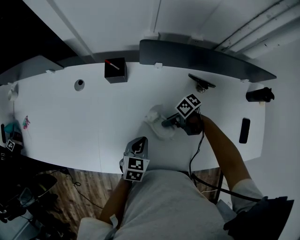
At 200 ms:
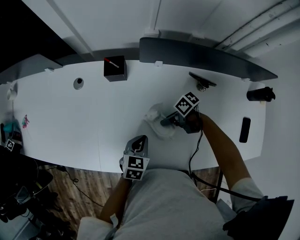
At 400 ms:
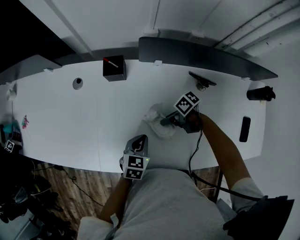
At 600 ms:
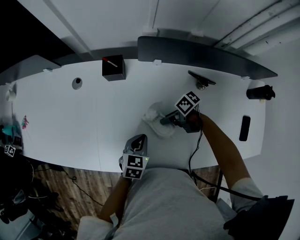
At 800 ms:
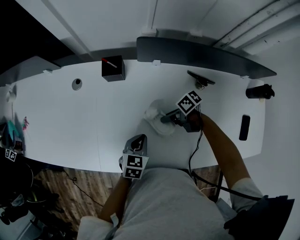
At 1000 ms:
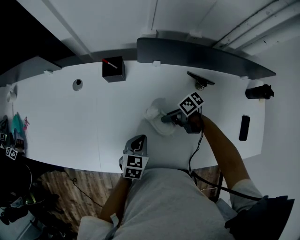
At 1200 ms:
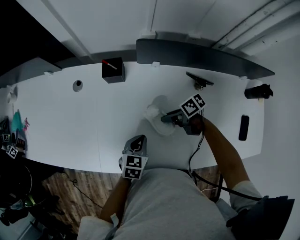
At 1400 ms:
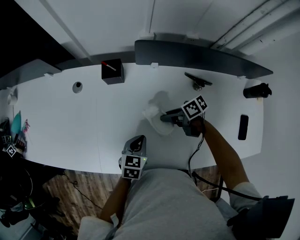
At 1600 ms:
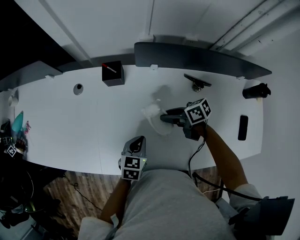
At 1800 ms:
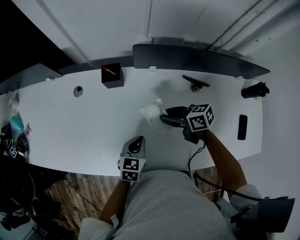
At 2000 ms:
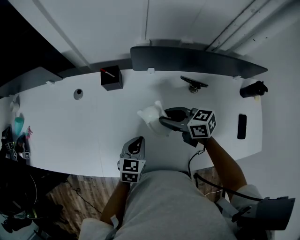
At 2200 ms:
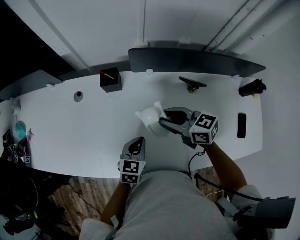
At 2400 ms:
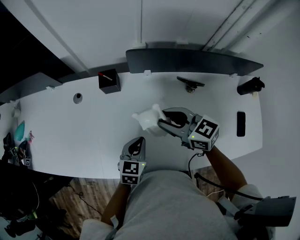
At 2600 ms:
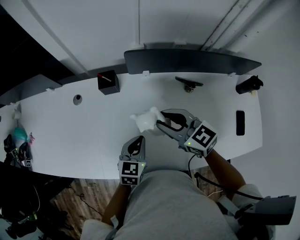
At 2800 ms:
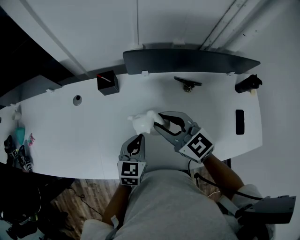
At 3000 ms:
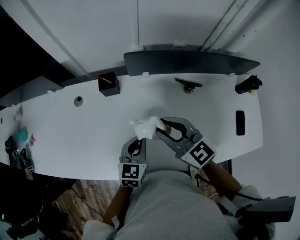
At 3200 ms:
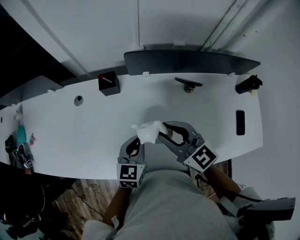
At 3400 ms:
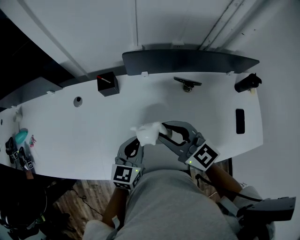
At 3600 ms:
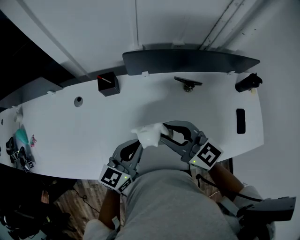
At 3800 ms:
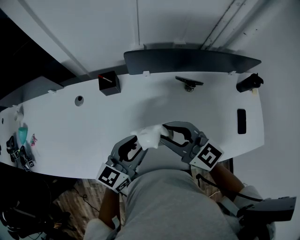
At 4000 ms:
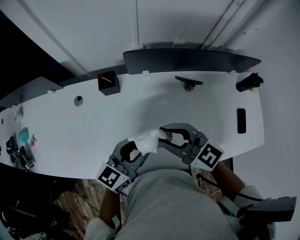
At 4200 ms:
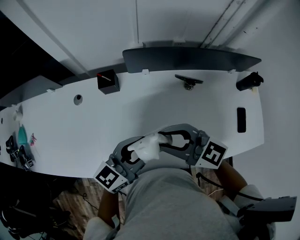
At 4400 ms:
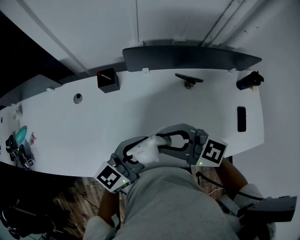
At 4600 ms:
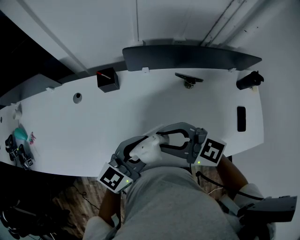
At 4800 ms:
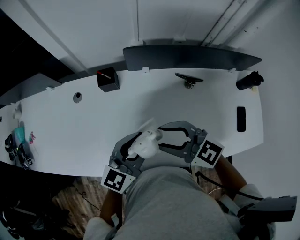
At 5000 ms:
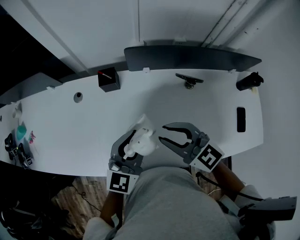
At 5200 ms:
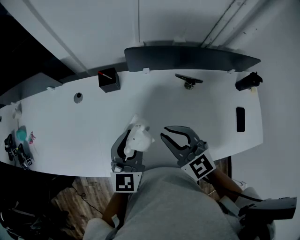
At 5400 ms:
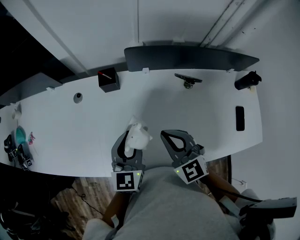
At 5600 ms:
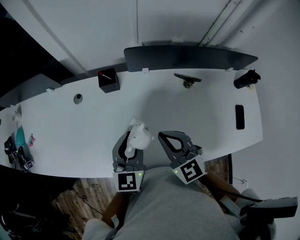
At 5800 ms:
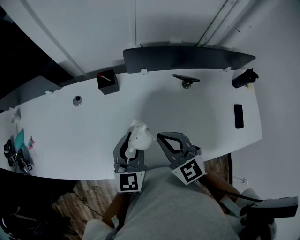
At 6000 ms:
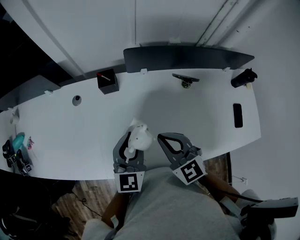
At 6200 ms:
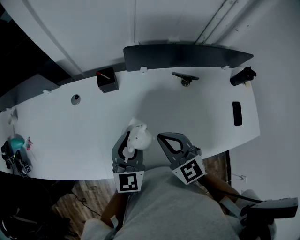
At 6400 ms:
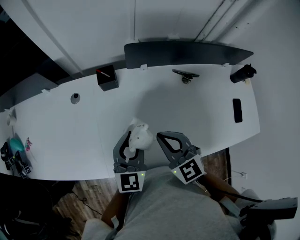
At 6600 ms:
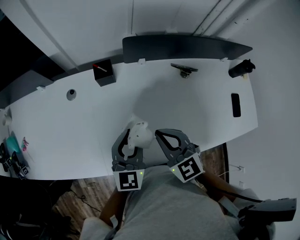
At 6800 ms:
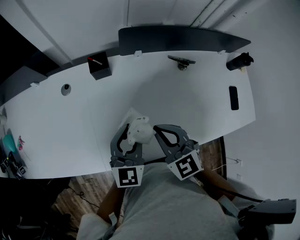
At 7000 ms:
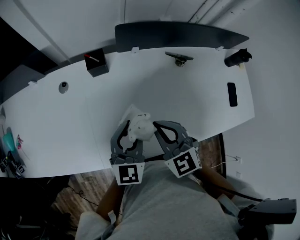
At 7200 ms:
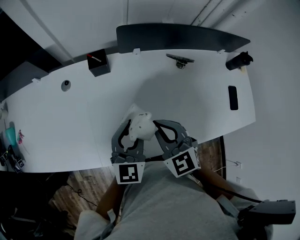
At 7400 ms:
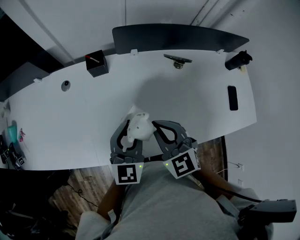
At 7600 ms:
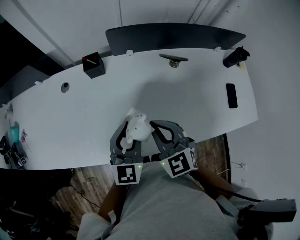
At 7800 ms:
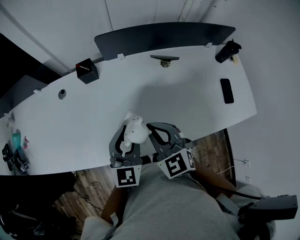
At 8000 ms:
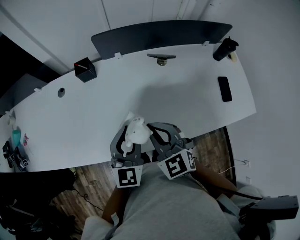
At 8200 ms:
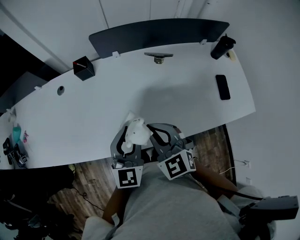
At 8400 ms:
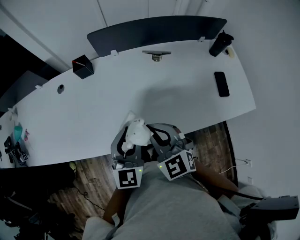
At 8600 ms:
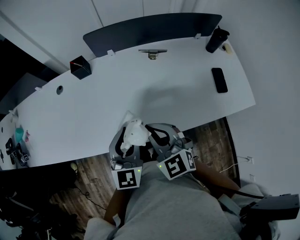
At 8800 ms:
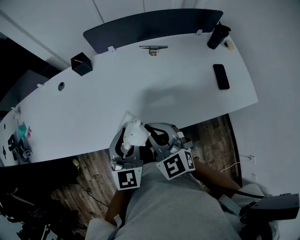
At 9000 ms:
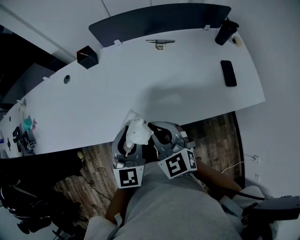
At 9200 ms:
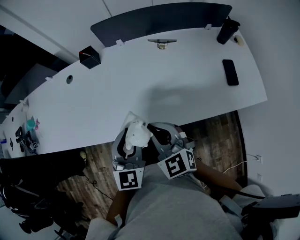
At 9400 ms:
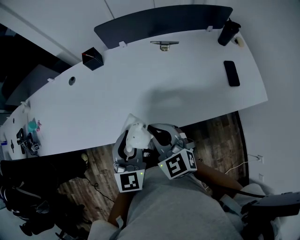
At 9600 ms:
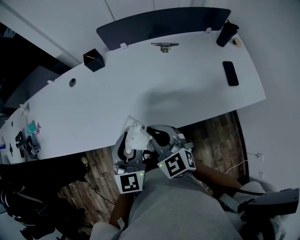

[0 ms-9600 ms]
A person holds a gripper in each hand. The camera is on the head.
0 ms to 1600 ms: The right gripper heads upward, covering about 10 cm, and changes its angle by roughly 30 degrees.
1600 ms to 3200 ms: The right gripper goes some 20 cm upward, and rotates roughly 60 degrees. Meanwhile the left gripper moves upward, about 10 cm.
3200 ms to 4800 ms: The left gripper heads upward, covering about 10 cm, turns by roughly 20 degrees, and opens up, while the right gripper changes its angle by about 20 degrees.
4800 ms to 6400 ms: The left gripper goes some 5 cm to the left, and turns by some 20 degrees; the right gripper swivels approximately 30 degrees, and closes.
6400 ms to 8000 ms: The left gripper is displaced to the right and backward by roughly 15 cm. The right gripper travels backward and to the right by some 10 cm.
8000 ms to 9600 ms: Both grippers travel together backward, some 10 cm.

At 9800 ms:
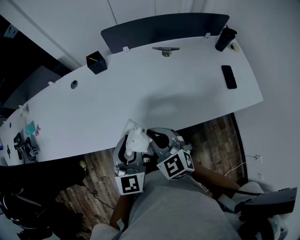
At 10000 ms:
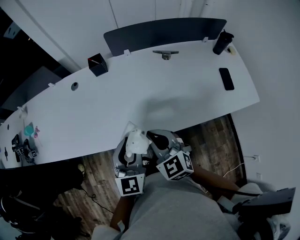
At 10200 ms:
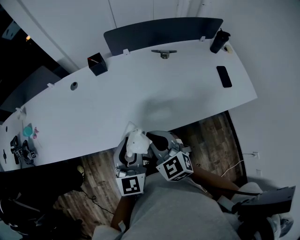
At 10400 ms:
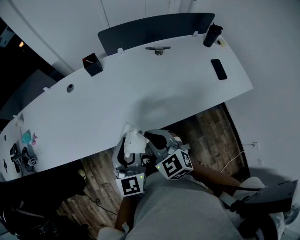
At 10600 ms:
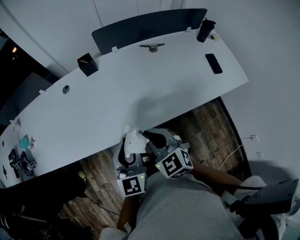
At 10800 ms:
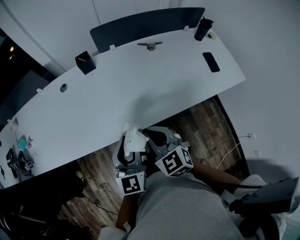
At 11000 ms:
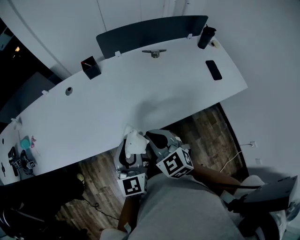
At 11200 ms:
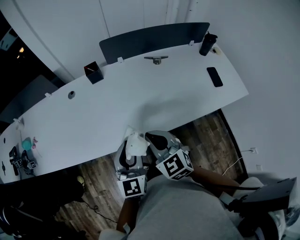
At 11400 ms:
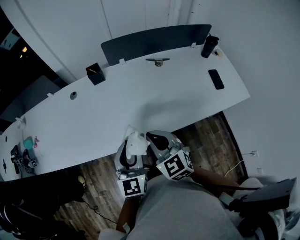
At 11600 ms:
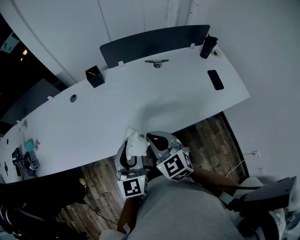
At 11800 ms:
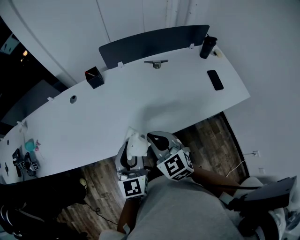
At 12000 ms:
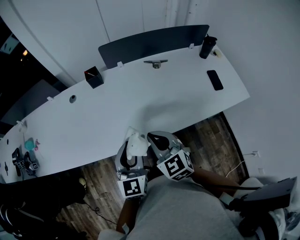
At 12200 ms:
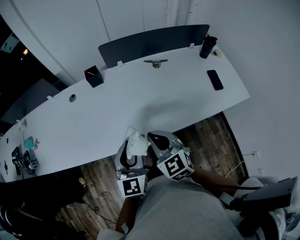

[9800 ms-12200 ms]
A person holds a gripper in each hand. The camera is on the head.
9800 ms to 11000 ms: The left gripper goes roughly 5 cm to the left. Meanwhile the right gripper changes place by about 5 cm.
11000 ms to 12200 ms: There are only small adjustments of the grippers.

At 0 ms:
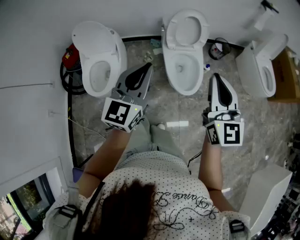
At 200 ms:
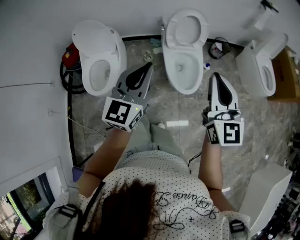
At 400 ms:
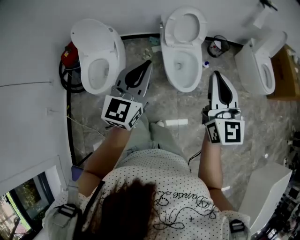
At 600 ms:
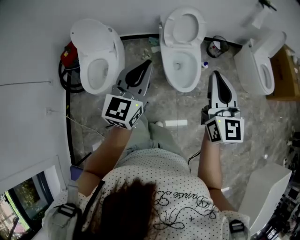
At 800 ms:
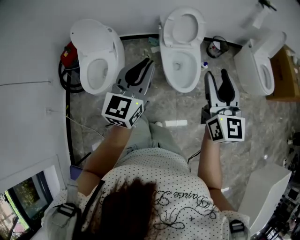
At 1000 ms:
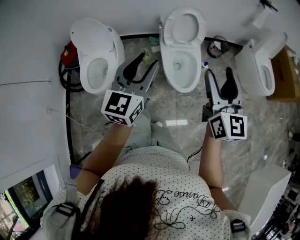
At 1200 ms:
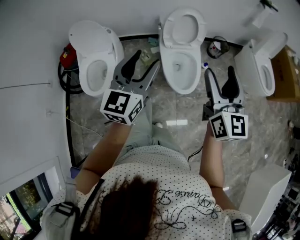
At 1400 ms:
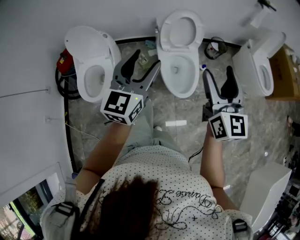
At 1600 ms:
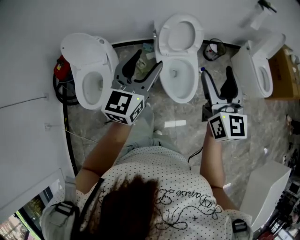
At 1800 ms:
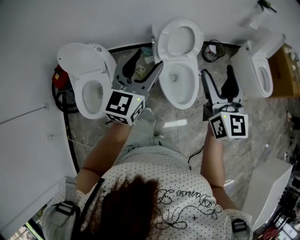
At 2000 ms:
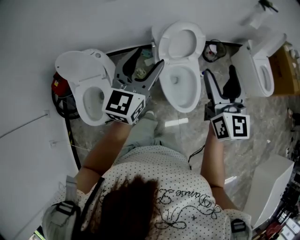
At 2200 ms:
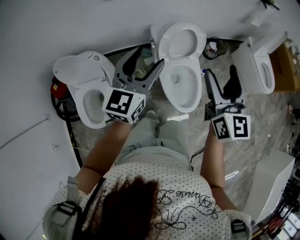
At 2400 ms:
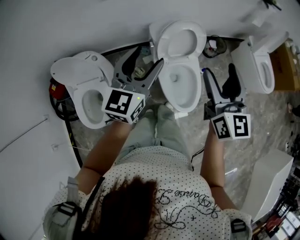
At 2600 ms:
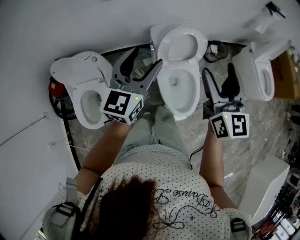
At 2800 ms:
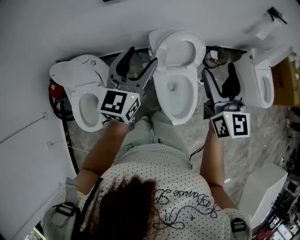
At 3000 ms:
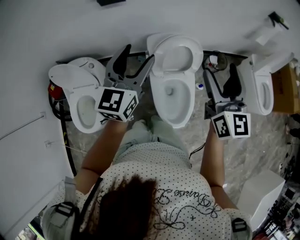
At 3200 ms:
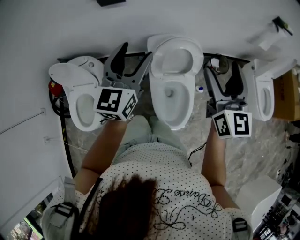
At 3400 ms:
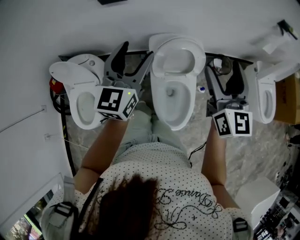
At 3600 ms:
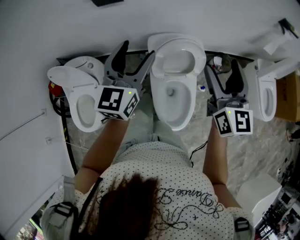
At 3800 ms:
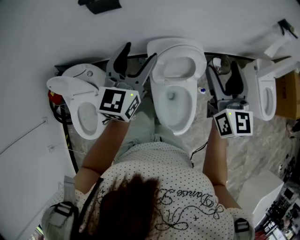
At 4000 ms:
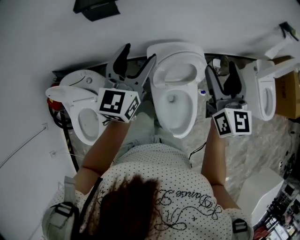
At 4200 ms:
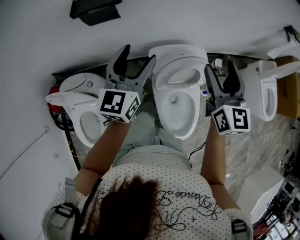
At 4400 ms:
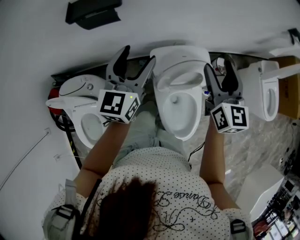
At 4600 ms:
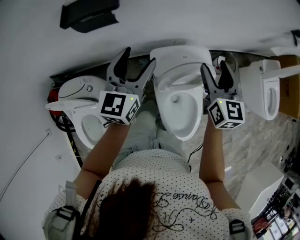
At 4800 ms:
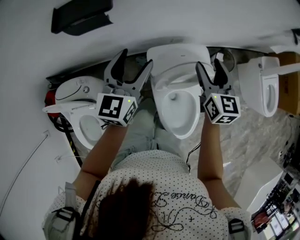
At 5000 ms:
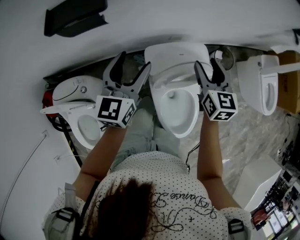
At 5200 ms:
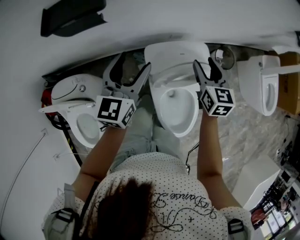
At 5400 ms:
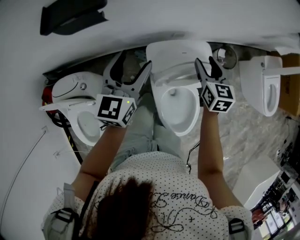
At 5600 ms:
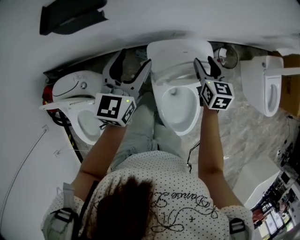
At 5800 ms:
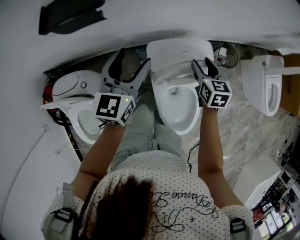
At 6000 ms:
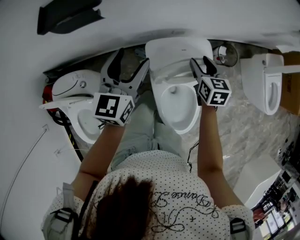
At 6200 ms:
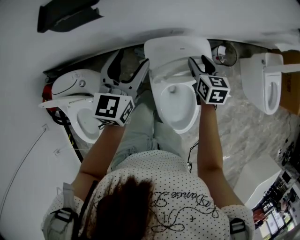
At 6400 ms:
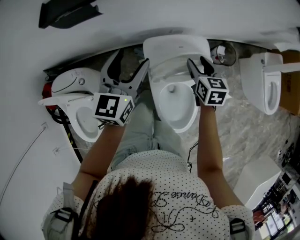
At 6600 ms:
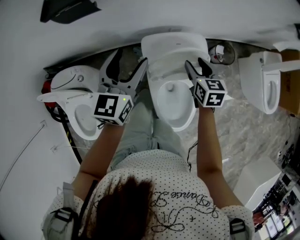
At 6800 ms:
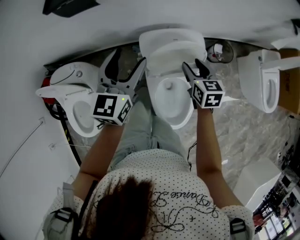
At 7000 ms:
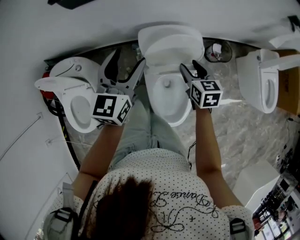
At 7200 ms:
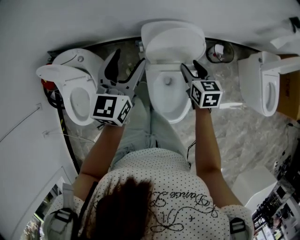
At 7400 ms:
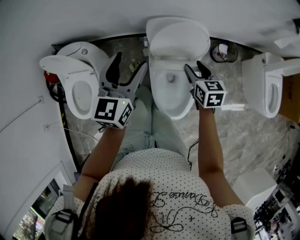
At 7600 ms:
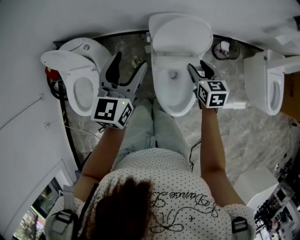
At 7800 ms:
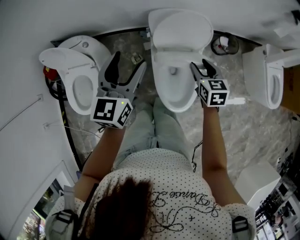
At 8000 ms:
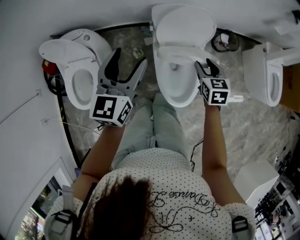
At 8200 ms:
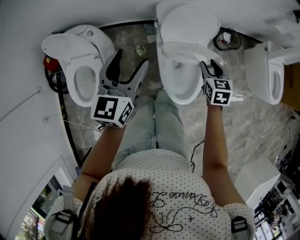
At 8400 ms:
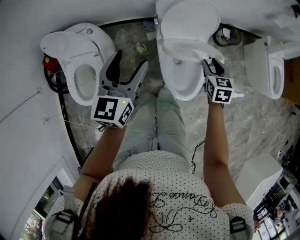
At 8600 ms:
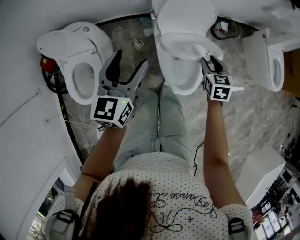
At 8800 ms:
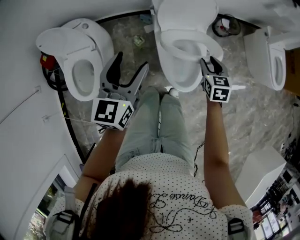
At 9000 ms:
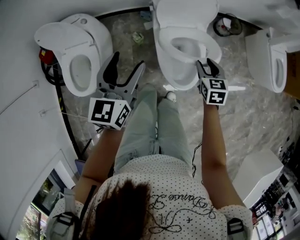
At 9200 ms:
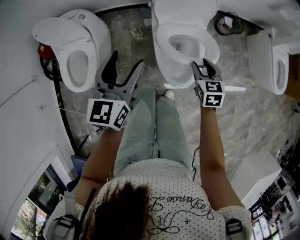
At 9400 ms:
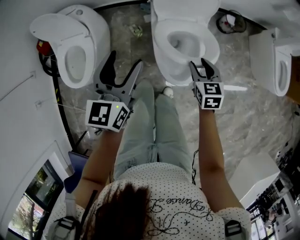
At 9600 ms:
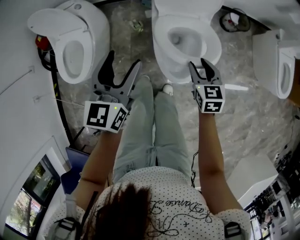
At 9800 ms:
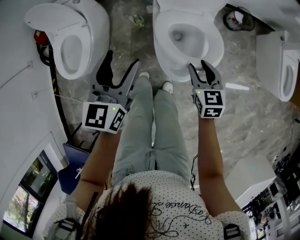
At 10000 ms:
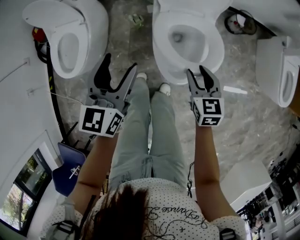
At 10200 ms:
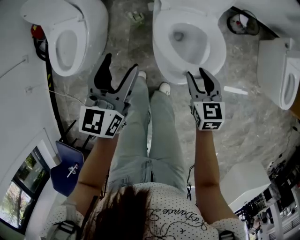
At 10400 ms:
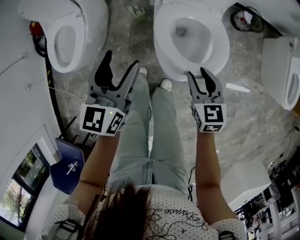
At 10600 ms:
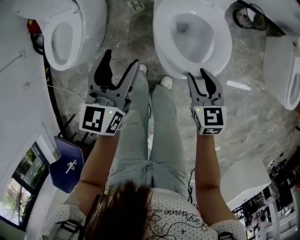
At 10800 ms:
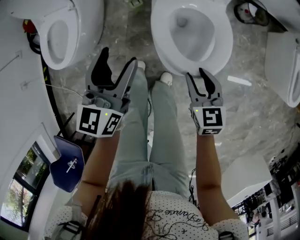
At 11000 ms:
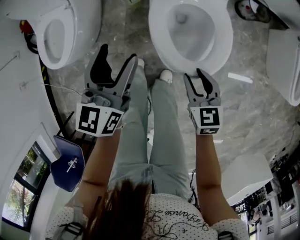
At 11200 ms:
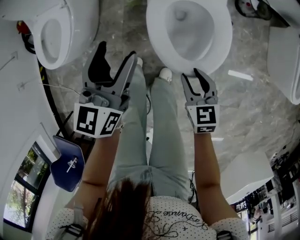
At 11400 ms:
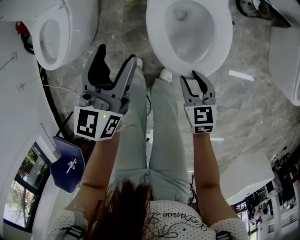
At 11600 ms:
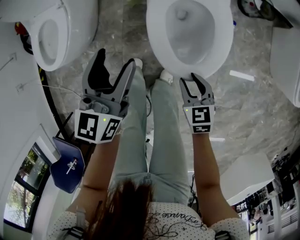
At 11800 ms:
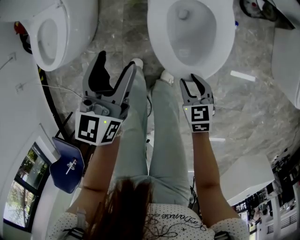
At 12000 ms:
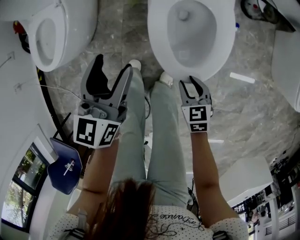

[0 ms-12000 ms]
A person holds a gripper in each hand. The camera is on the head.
0 ms to 1600 ms: Both grippers move forward, about 10 cm. The left gripper opens up. Meanwhile the right gripper opens up.
1600 ms to 3000 ms: The two grippers go about 25 cm forward.
3000 ms to 4400 ms: The two grippers go some 20 cm forward.
4400 ms to 6000 ms: The left gripper heads downward, covering some 10 cm, while the right gripper is displaced downward by some 20 cm, and swivels some 30 degrees.
6000 ms to 7600 ms: The two grippers go some 25 cm backward.
7600 ms to 9000 ms: The two grippers go approximately 15 cm backward.
9000 ms to 10400 ms: The right gripper heads backward and downward, covering about 10 cm; the left gripper travels downward and backward by roughly 15 cm.
10400 ms to 12000 ms: The right gripper heads downward and backward, covering some 20 cm. Meanwhile the left gripper is displaced downward by about 10 cm.
